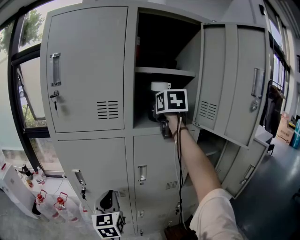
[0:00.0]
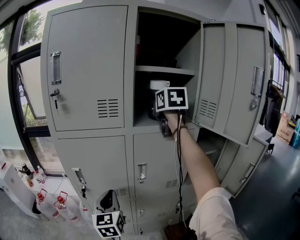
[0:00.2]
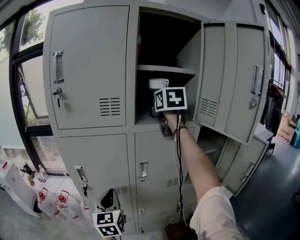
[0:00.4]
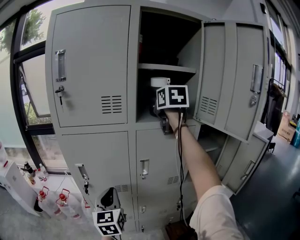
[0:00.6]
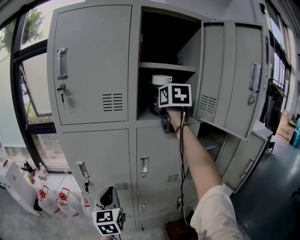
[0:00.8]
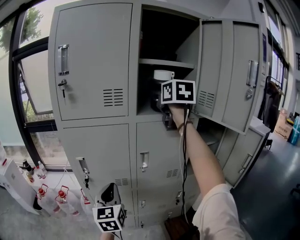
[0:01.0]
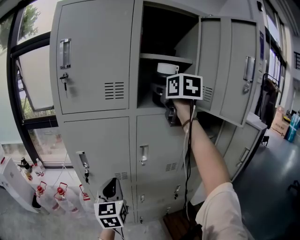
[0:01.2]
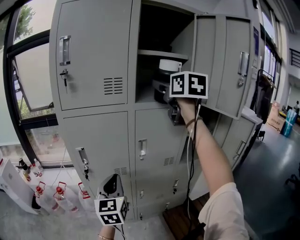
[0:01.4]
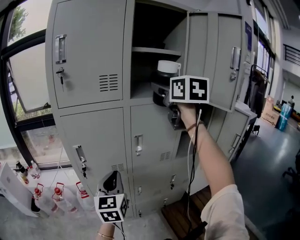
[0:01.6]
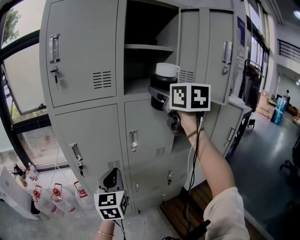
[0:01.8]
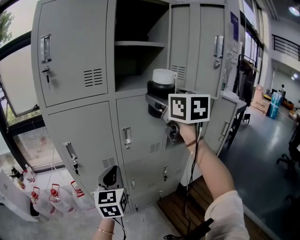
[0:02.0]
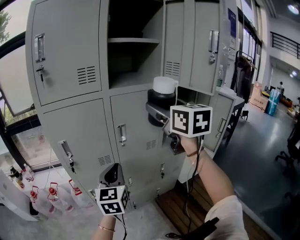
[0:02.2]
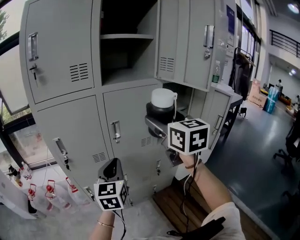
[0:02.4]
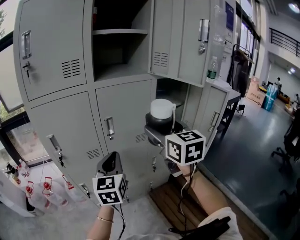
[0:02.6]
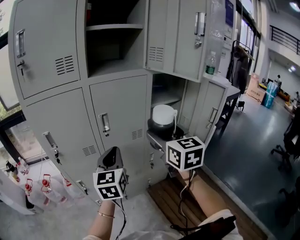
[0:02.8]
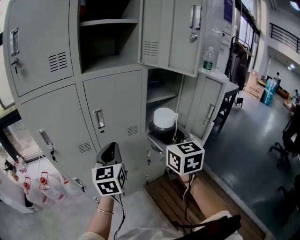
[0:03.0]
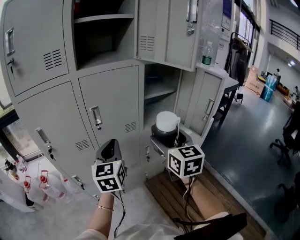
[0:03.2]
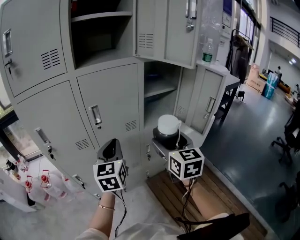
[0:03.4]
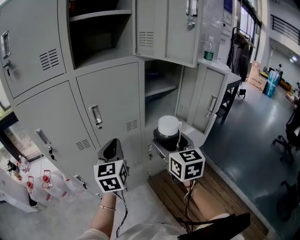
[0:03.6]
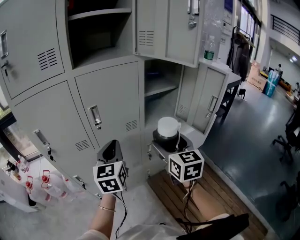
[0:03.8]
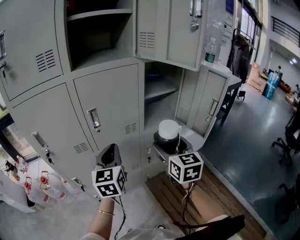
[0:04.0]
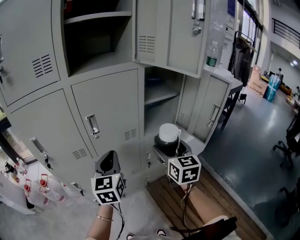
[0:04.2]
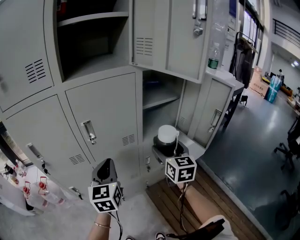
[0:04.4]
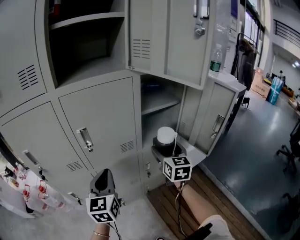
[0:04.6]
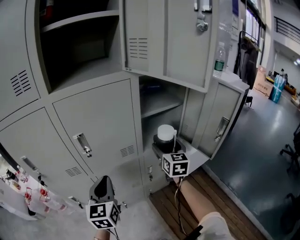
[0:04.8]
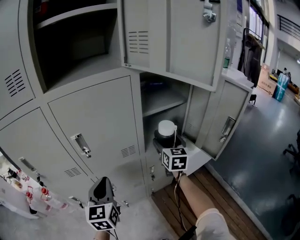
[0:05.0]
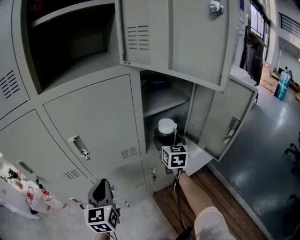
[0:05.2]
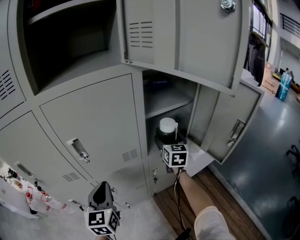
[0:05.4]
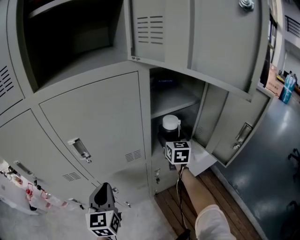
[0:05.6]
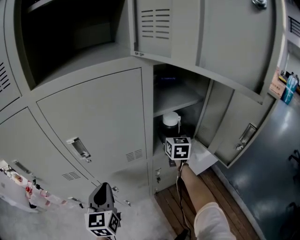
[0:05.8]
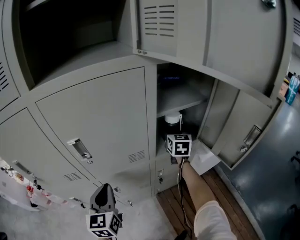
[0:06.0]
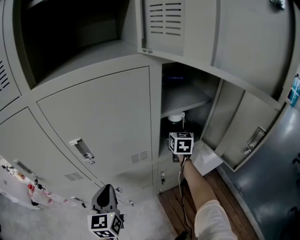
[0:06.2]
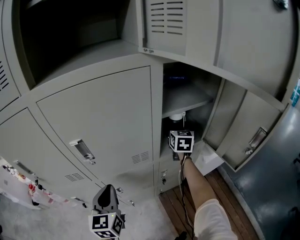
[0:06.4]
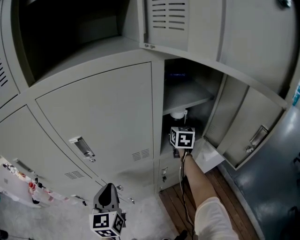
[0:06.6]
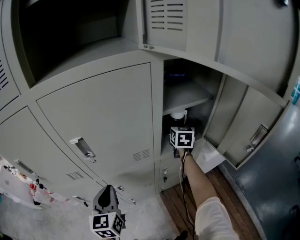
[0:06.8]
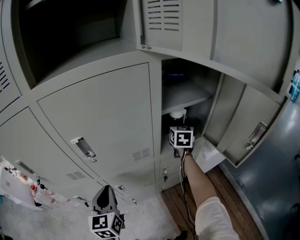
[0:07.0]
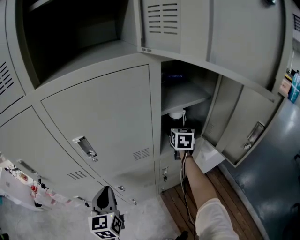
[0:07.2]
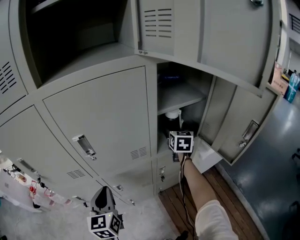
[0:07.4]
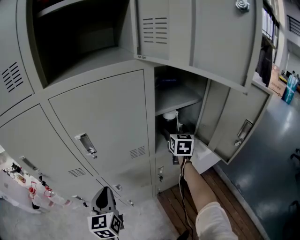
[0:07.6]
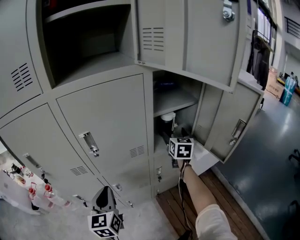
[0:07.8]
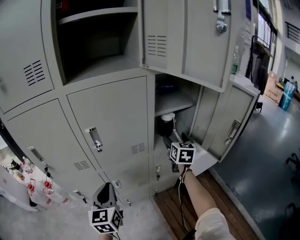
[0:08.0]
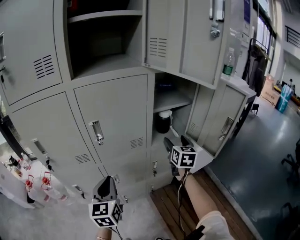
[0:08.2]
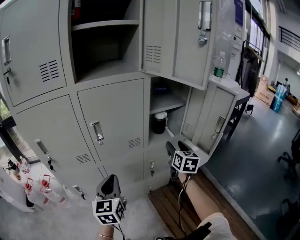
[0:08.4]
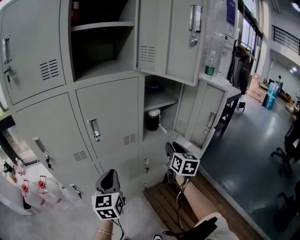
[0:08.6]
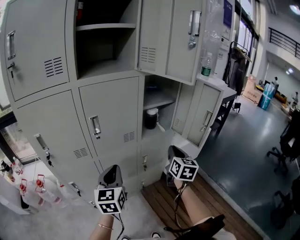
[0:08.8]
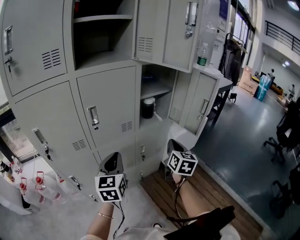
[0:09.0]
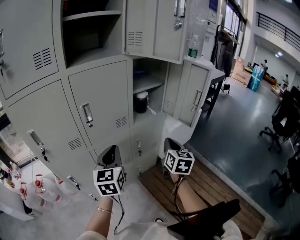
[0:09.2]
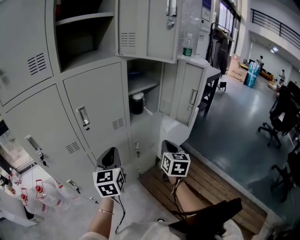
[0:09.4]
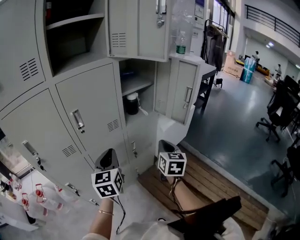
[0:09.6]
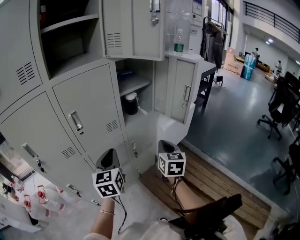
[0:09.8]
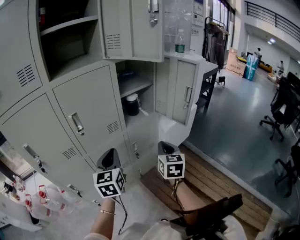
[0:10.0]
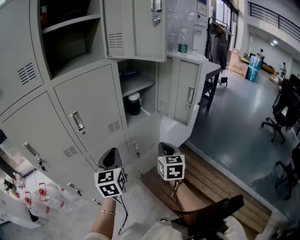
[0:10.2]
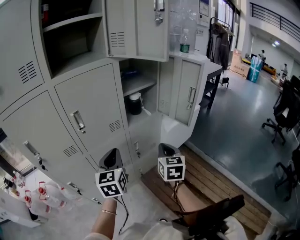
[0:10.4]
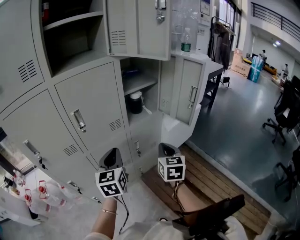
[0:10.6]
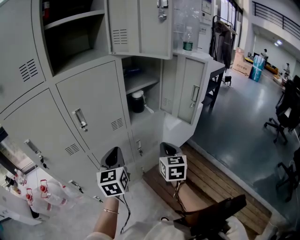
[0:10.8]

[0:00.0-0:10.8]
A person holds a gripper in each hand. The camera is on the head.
0:00.0 to 0:01.6: The right gripper travels backward by about 15 cm; the left gripper goes approximately 5 cm backward.
0:01.6 to 0:03.0: The left gripper moves to the right, roughly 15 cm. Meanwhile the right gripper shifts about 35 cm downward, to the right and backward.
0:03.0 to 0:04.6: The right gripper goes about 20 cm forward, downward and to the right; the left gripper goes roughly 5 cm downward.
0:04.6 to 0:06.2: The left gripper goes roughly 10 cm downward and forward, while the right gripper shifts some 25 cm forward.
0:06.2 to 0:07.8: Both grippers travel together backward, about 5 cm.
0:07.8 to 0:09.2: The left gripper is displaced upward and to the right by approximately 10 cm, and changes its angle by roughly 20 degrees, while the right gripper shifts approximately 30 cm backward, and closes its fingers.
0:09.2 to 0:10.8: The grippers move only a little.

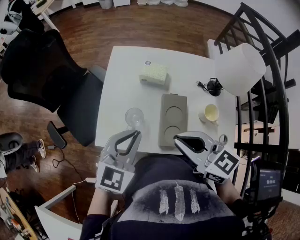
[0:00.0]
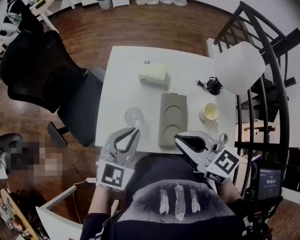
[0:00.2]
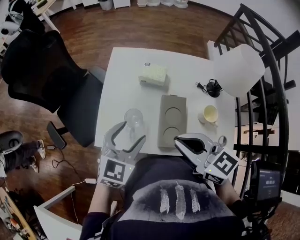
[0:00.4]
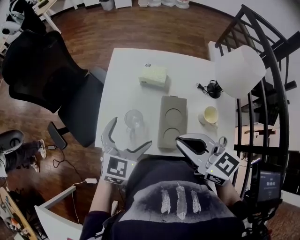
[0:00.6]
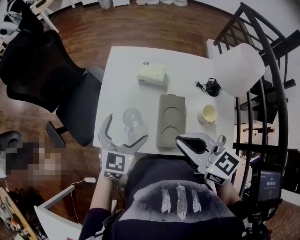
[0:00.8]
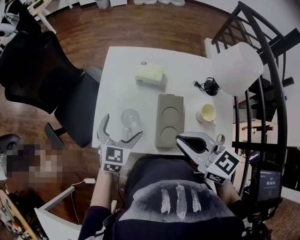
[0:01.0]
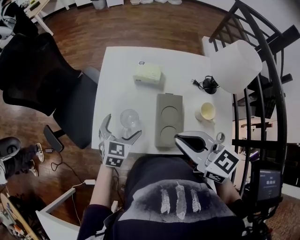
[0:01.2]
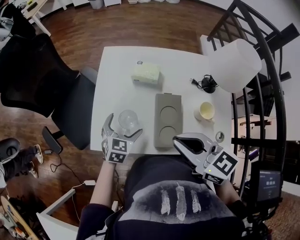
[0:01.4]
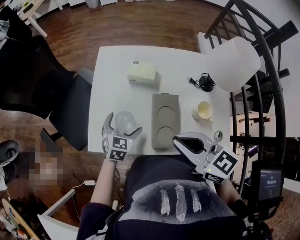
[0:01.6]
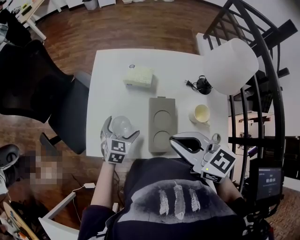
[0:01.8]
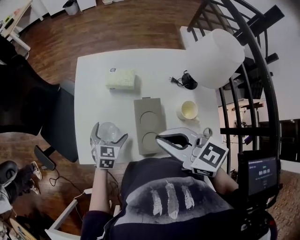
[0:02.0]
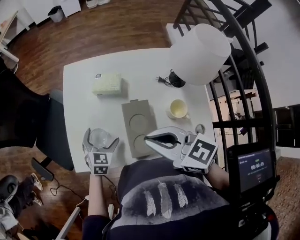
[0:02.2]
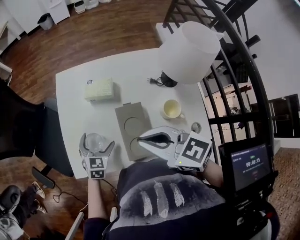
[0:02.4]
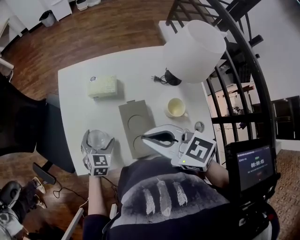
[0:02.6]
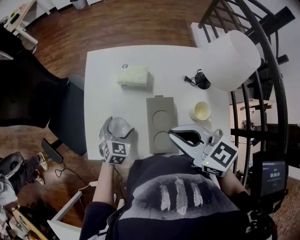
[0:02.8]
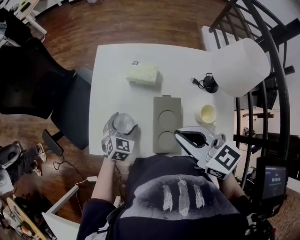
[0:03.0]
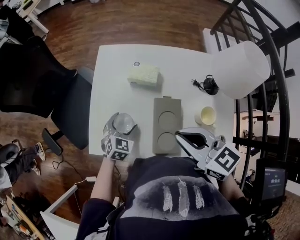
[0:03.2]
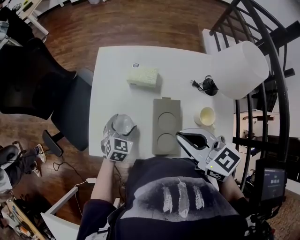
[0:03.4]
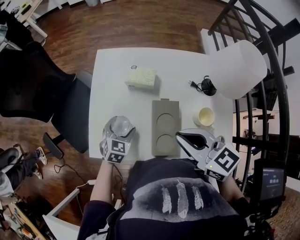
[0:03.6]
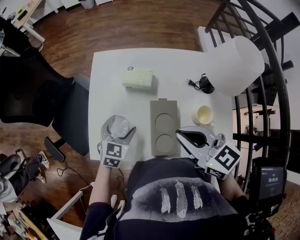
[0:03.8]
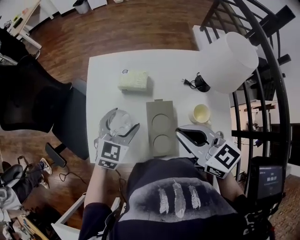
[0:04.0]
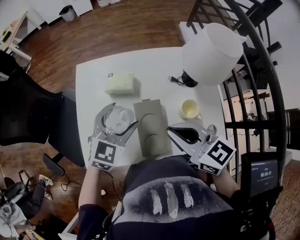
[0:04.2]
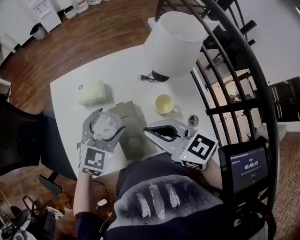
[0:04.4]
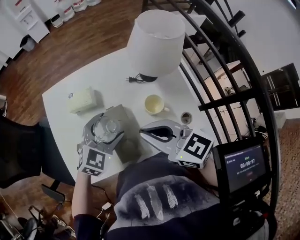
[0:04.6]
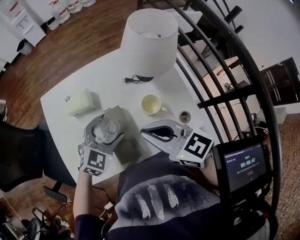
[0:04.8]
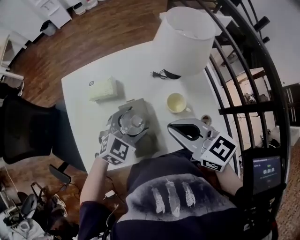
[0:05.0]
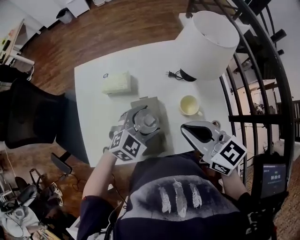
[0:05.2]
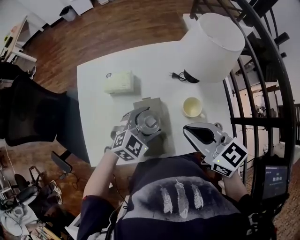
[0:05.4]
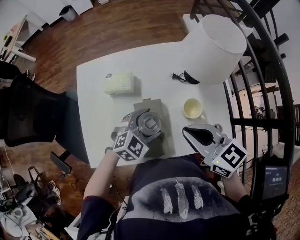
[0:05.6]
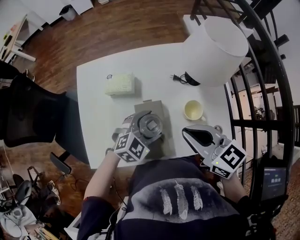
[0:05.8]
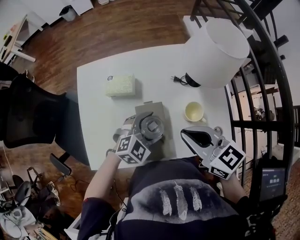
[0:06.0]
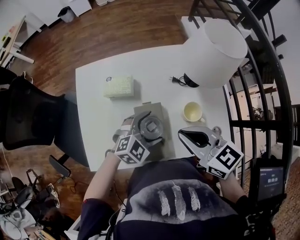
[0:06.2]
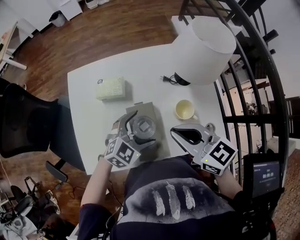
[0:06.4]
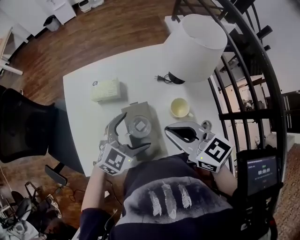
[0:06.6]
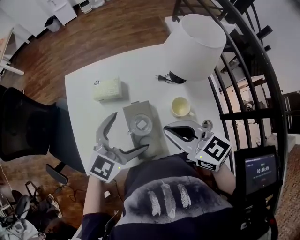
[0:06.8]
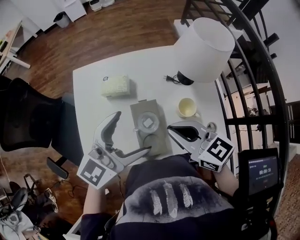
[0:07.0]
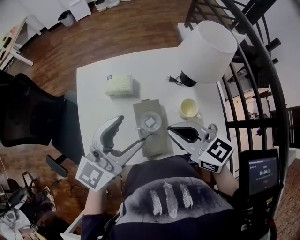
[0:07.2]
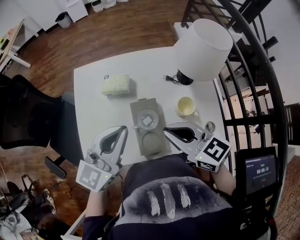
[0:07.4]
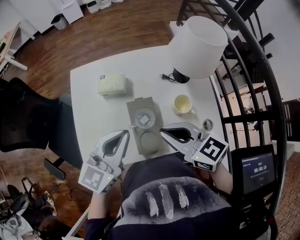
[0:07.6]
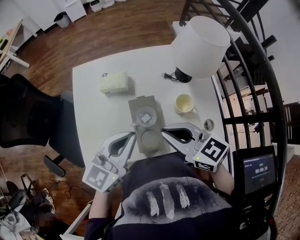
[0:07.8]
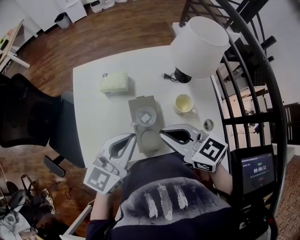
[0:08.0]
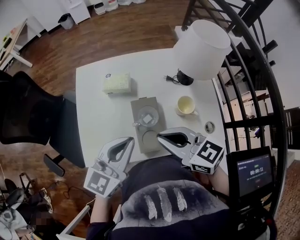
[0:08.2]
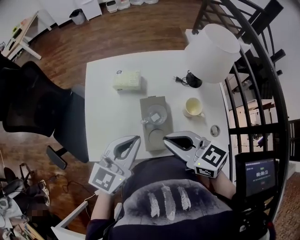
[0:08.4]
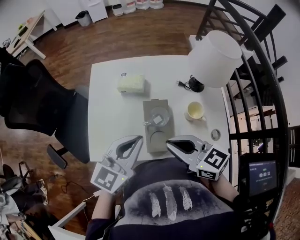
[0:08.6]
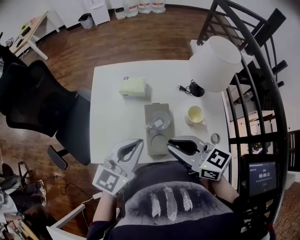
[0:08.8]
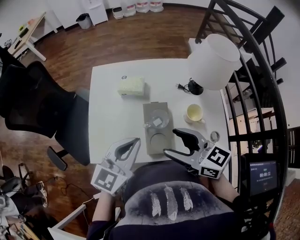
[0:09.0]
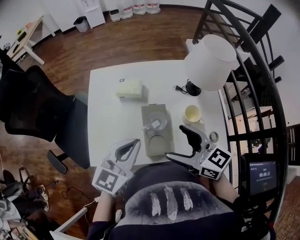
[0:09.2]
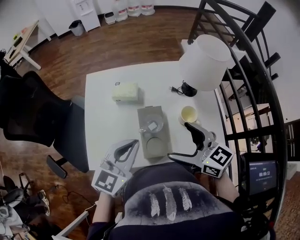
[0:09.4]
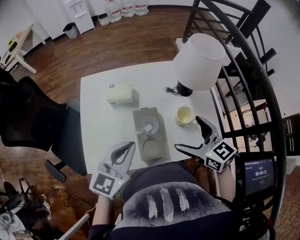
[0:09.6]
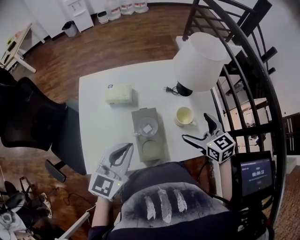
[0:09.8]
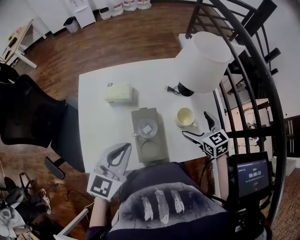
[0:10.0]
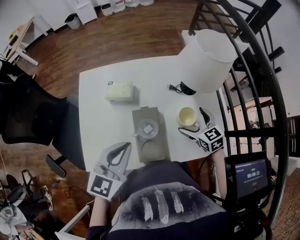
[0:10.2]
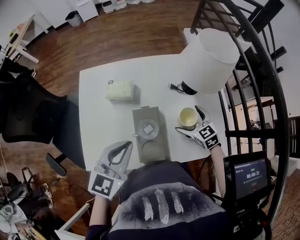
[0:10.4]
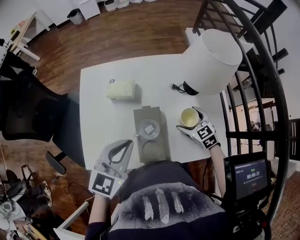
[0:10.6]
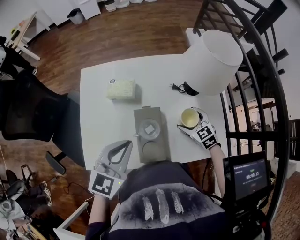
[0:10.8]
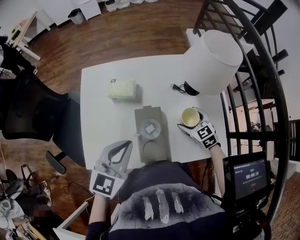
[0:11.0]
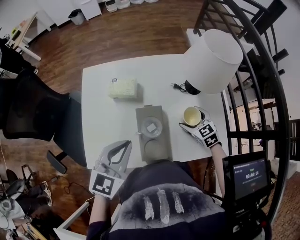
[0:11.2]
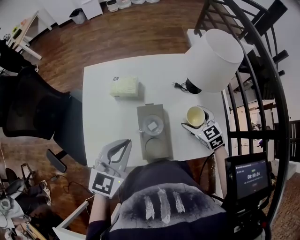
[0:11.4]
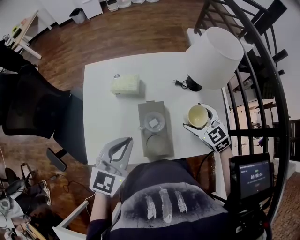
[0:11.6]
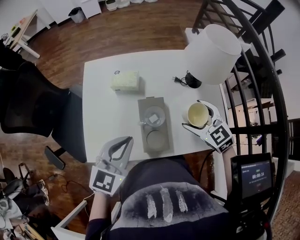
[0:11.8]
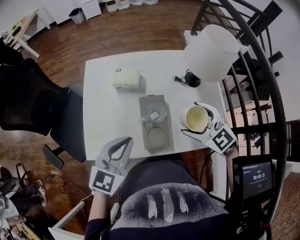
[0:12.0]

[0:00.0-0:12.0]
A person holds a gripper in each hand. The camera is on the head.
0:00.0 to 0:01.6: The left gripper goes some 20 cm downward, changes its angle by about 20 degrees, and opens its fingers.
0:01.6 to 0:03.0: The right gripper ends up some 5 cm from where it was.
0:03.0 to 0:04.4: The right gripper travels to the right by approximately 5 cm, while the left gripper travels upward and to the right by some 20 cm, and rotates some 30 degrees.
0:04.4 to 0:06.0: The left gripper is displaced downward and to the right by roughly 10 cm, and rotates about 20 degrees.
0:06.0 to 0:07.6: The right gripper changes place by approximately 5 cm, while the left gripper is displaced upward and to the left by about 20 cm, points its fingers about 30 degrees further upward, and closes up.
0:07.6 to 0:09.0: The right gripper opens.
0:09.0 to 0:10.4: The right gripper shifts approximately 30 cm downward, to the right and forward, changes its angle by some 30 degrees, and opens up; the left gripper moves approximately 5 cm.
0:10.4 to 0:12.0: The left gripper is displaced backward by some 5 cm. Meanwhile the right gripper shifts some 20 cm upward, backward and to the left, and rotates some 20 degrees.

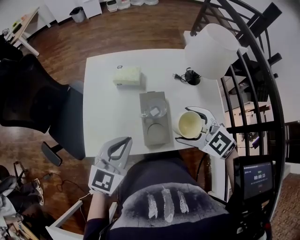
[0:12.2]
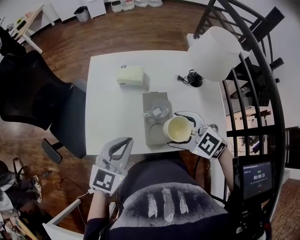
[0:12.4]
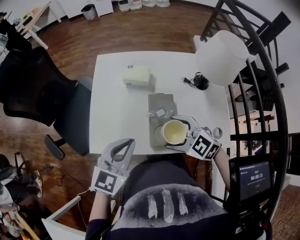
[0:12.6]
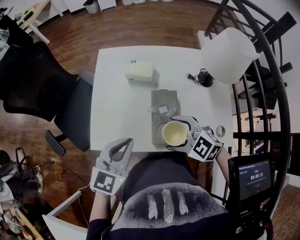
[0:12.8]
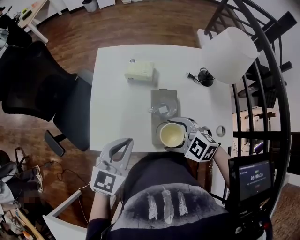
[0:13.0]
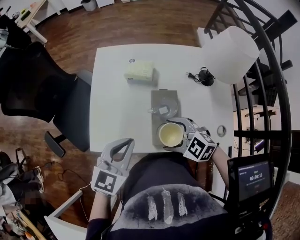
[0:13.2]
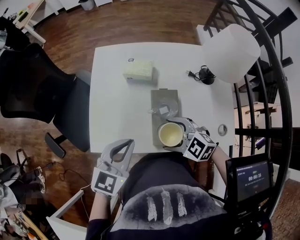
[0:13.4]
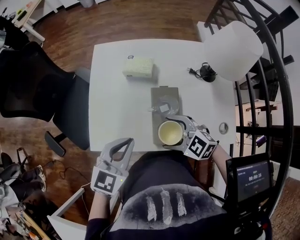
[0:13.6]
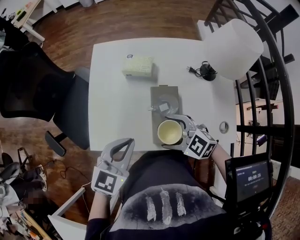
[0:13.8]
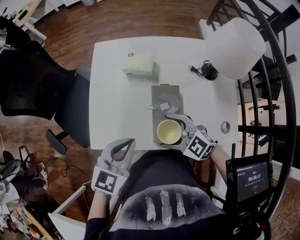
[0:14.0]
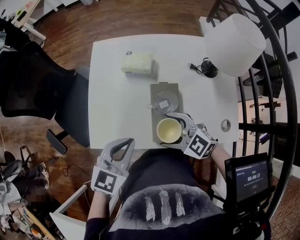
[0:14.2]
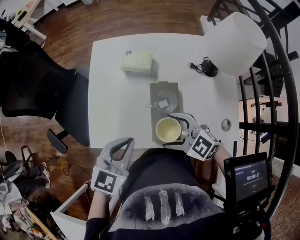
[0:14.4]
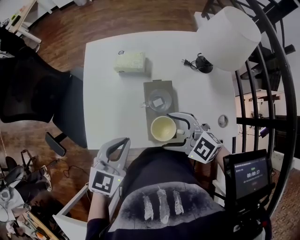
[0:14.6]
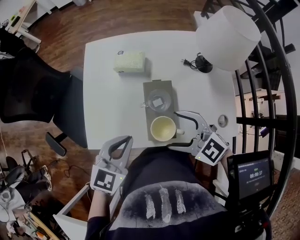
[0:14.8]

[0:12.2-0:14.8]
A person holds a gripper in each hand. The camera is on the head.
0:12.2 to 0:13.4: The right gripper heads downward and to the left, covering some 15 cm.
0:13.4 to 0:14.8: The right gripper moves upward, about 5 cm.
